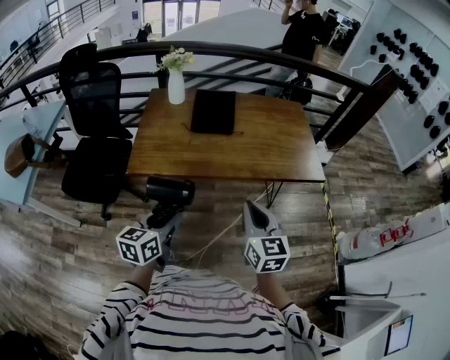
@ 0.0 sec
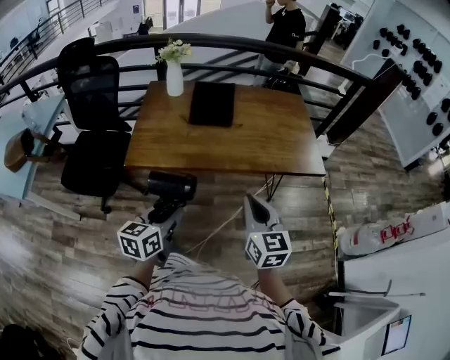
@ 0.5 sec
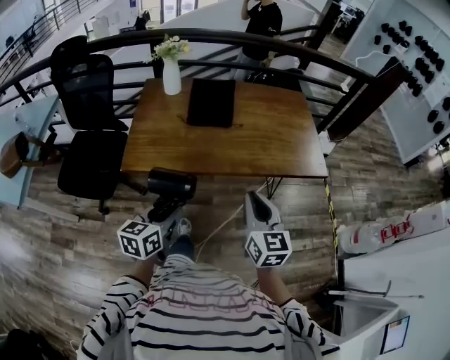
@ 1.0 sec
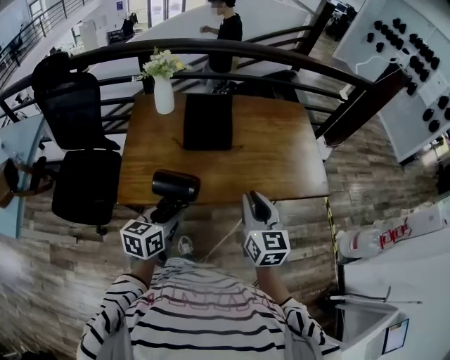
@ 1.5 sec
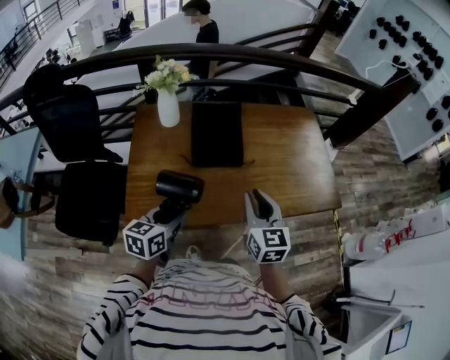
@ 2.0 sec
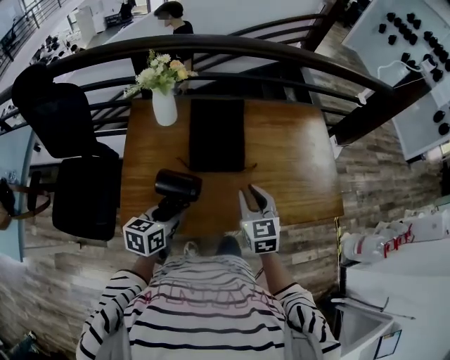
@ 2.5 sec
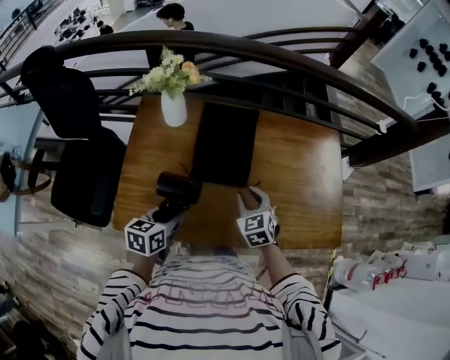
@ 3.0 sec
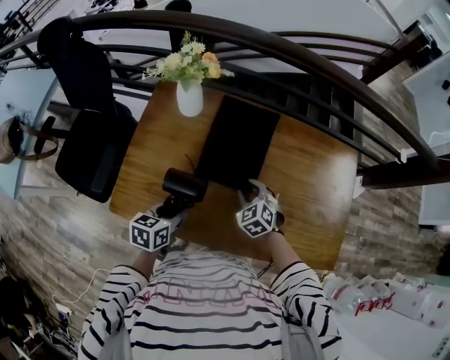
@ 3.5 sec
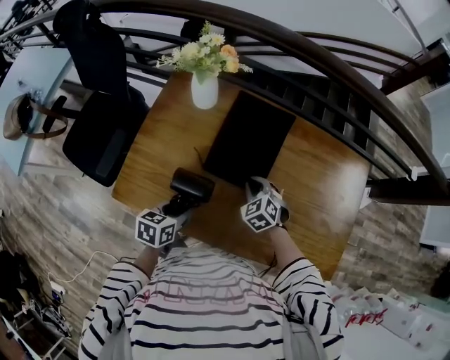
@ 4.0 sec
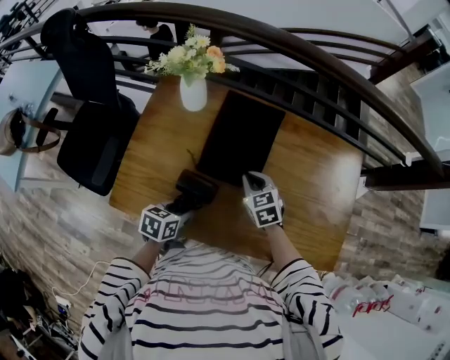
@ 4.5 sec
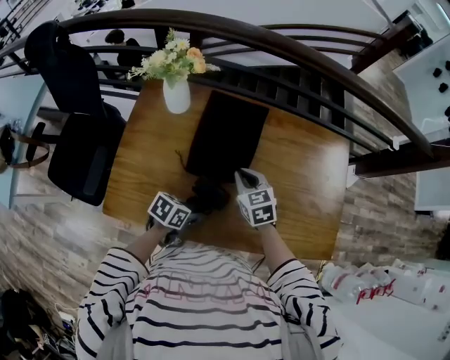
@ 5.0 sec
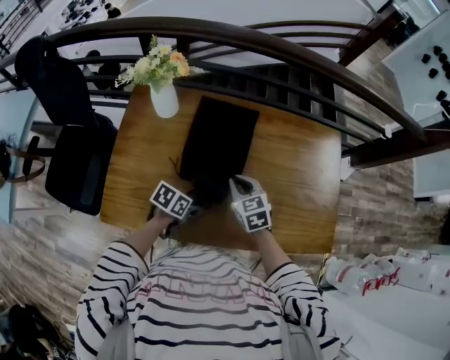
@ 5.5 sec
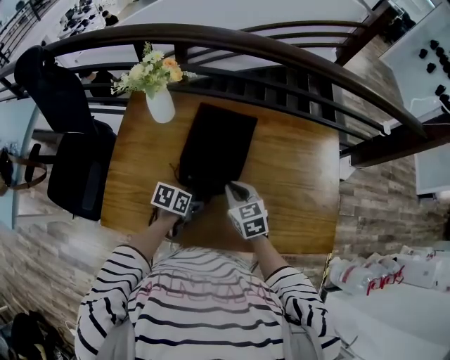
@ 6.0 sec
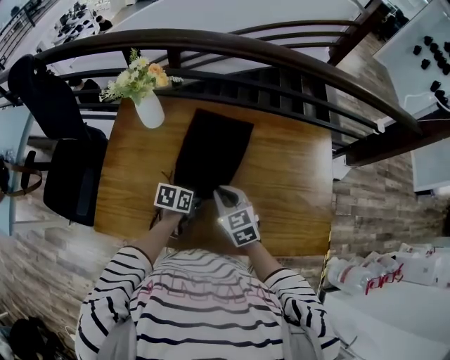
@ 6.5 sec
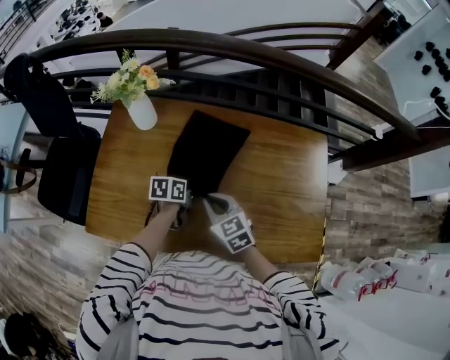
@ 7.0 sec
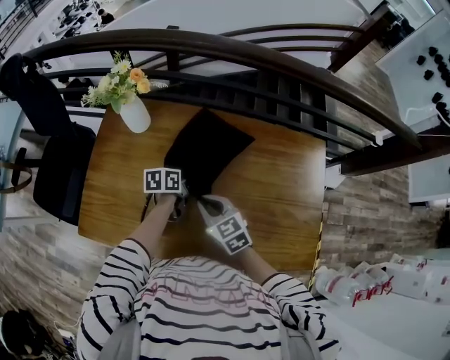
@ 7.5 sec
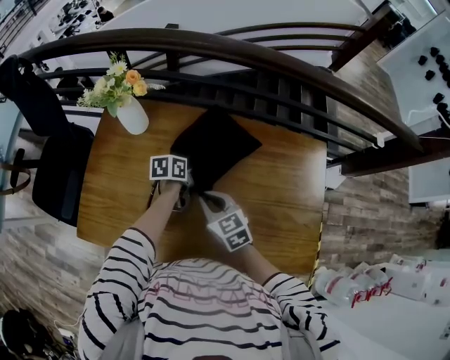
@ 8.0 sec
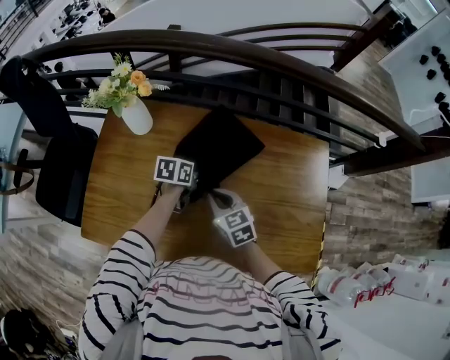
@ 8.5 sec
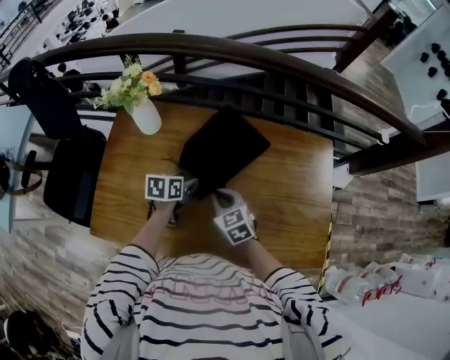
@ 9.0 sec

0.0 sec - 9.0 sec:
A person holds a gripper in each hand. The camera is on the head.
0.0 sec - 2.0 sec: Both grippers move forward, approximately 30 cm.
2.0 sec - 4.5 sec: The left gripper shifts some 20 cm downward and forward, and swivels some 20 degrees. The right gripper moves forward and downward, roughly 30 cm, and changes its angle by some 50 degrees.
4.5 sec - 7.0 sec: The right gripper is displaced backward by roughly 5 cm. The left gripper moves forward and to the right, roughly 20 cm.
7.0 sec - 9.0 sec: The right gripper ends up about 5 cm from where it was. Meanwhile the left gripper opens.

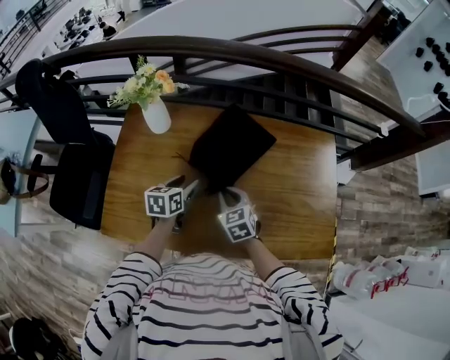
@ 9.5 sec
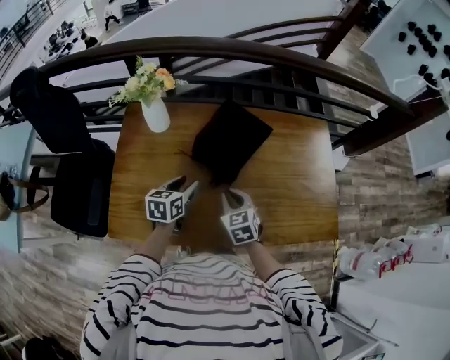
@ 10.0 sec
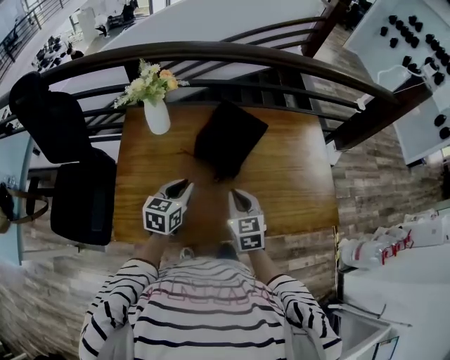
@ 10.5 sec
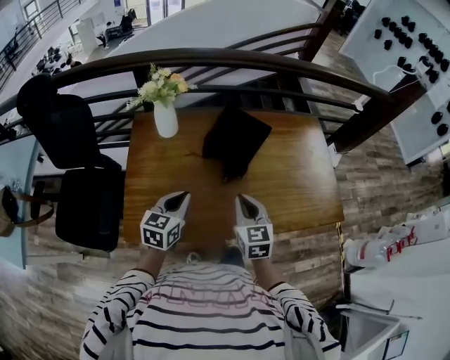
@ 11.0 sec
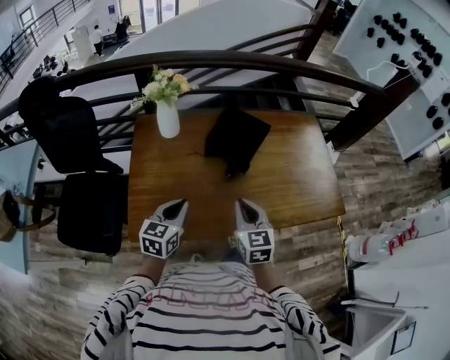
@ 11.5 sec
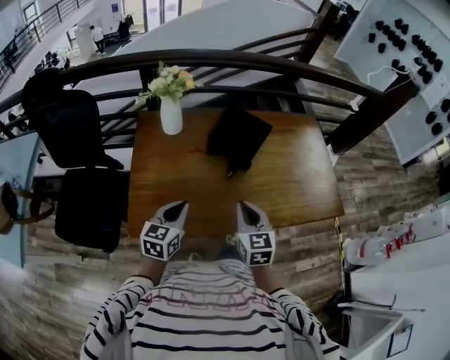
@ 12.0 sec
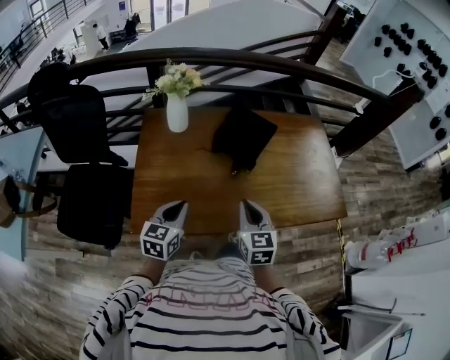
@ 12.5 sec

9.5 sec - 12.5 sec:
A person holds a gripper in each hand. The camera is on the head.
9.5 sec - 11.0 sec: The left gripper heads backward, upward and to the left, covering about 20 cm, rotates approximately 30 degrees, and closes up. Meanwhile the right gripper is displaced backward and upward by about 20 cm, and turns by about 30 degrees.
11.0 sec - 12.5 sec: Both grippers move backward, approximately 10 cm.

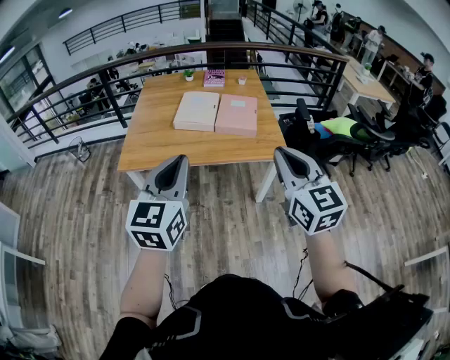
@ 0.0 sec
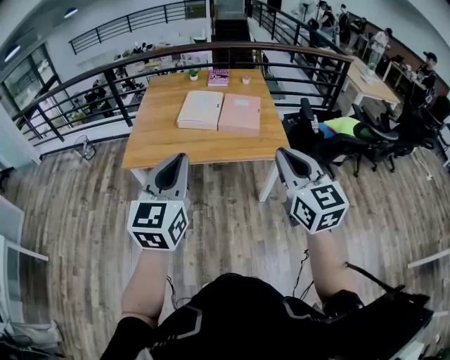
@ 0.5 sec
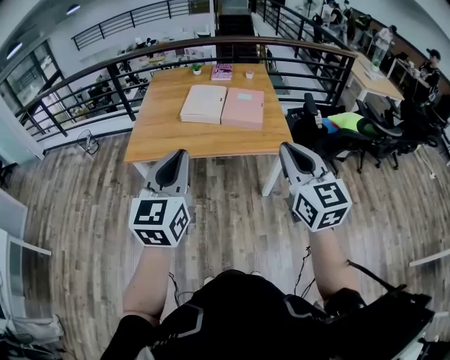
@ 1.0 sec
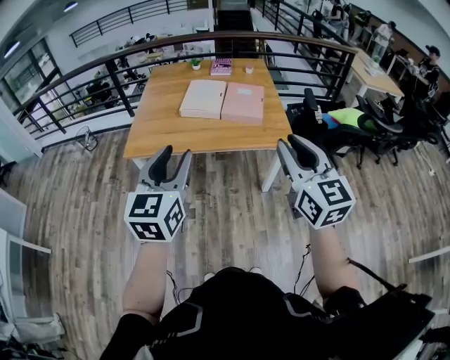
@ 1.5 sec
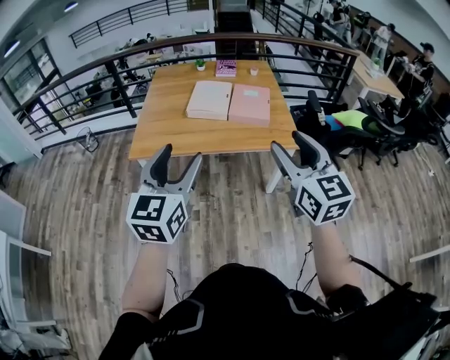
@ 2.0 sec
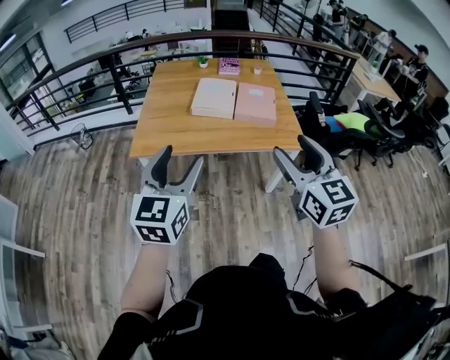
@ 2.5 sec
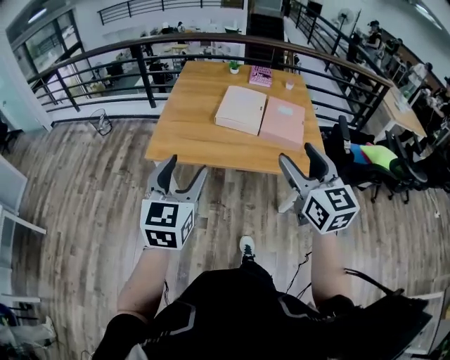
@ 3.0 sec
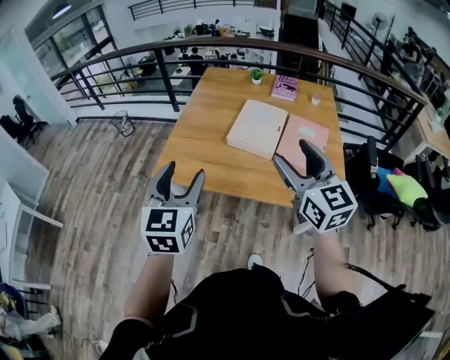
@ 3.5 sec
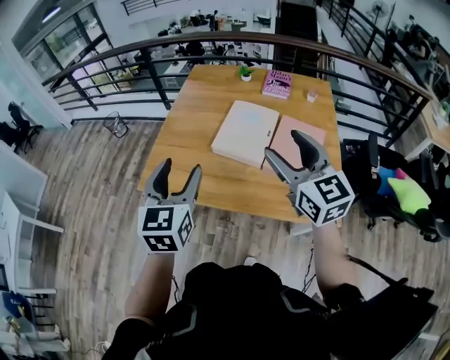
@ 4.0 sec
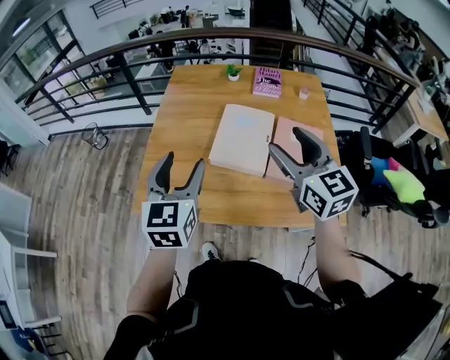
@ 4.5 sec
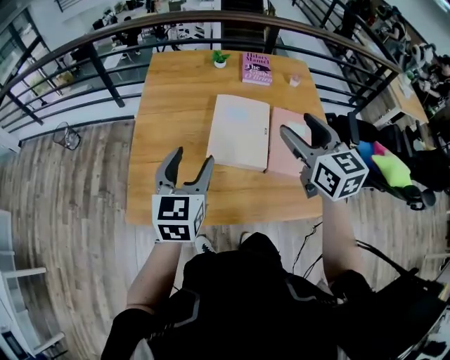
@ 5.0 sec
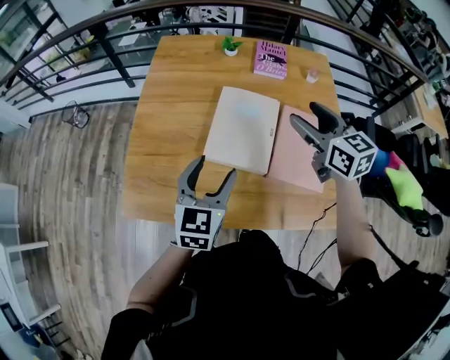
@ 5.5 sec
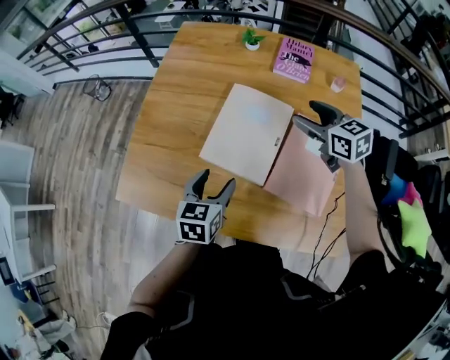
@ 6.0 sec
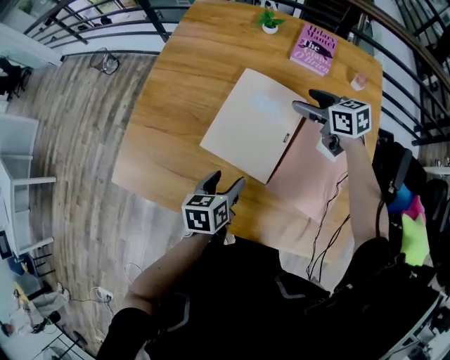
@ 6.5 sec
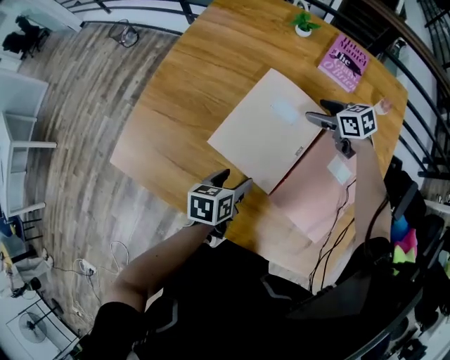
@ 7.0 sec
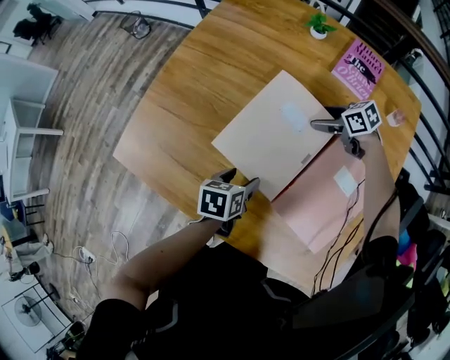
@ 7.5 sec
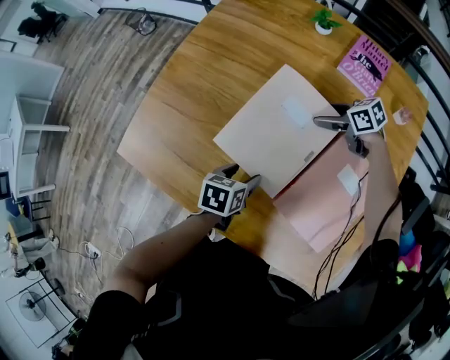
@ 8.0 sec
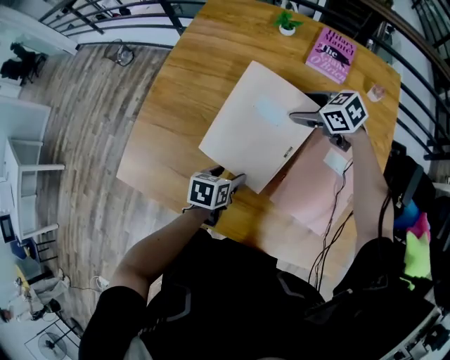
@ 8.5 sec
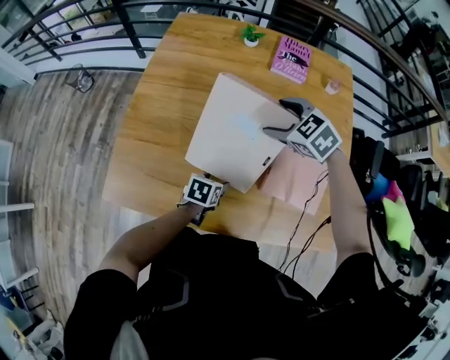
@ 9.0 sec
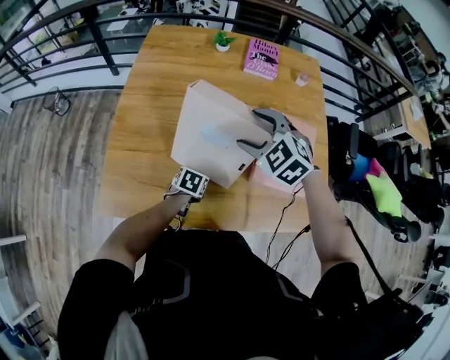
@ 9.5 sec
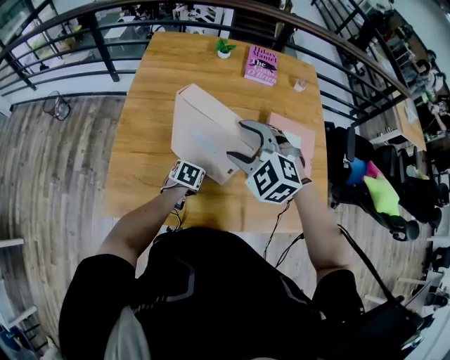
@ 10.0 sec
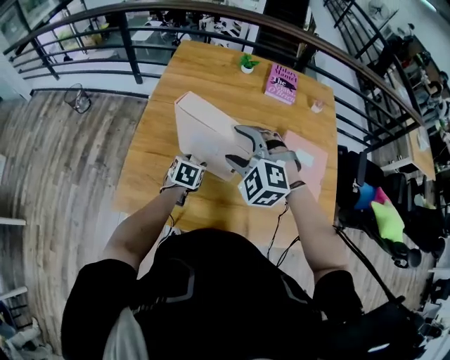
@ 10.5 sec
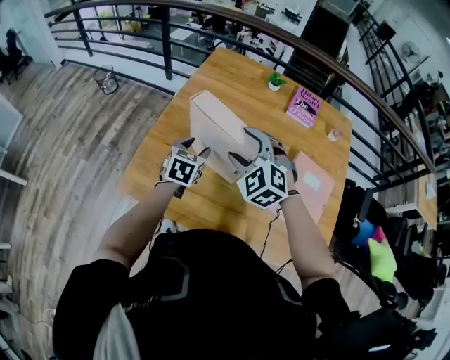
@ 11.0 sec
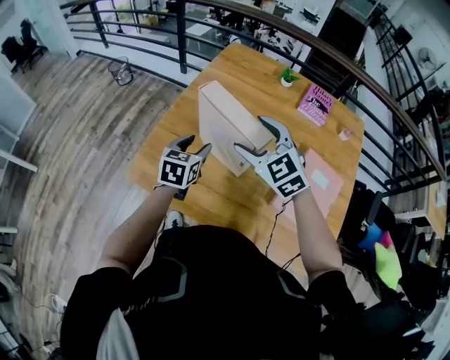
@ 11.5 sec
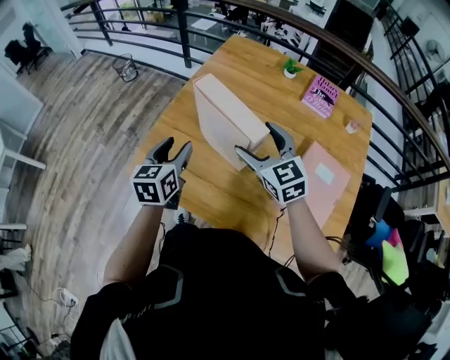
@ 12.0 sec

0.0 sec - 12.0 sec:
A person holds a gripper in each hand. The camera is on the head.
0.0 sec - 2.0 sec: The left gripper opens up, while the right gripper opens its fingers.
2.0 sec - 4.0 sec: Both grippers travel together forward, about 35 cm. The right gripper rotates approximately 20 degrees. Meanwhile the left gripper swivels approximately 30 degrees.
4.0 sec - 6.0 sec: The left gripper shifts about 30 cm downward and forward, and changes its angle by roughly 30 degrees; the right gripper moves forward and downward, about 40 cm, and rotates approximately 30 degrees.
6.0 sec - 8.0 sec: Both grippers move downward, approximately 20 cm. The right gripper changes its angle by some 40 degrees. The left gripper changes its angle by about 30 degrees.
8.0 sec - 10.0 sec: The right gripper shifts by about 35 cm, and rotates approximately 70 degrees. Meanwhile the left gripper changes place by about 10 cm, and turns by approximately 40 degrees.
10.0 sec - 12.0 sec: The left gripper travels upward by some 25 cm, and angles its fingers upward, by some 40 degrees. The right gripper rotates some 40 degrees.

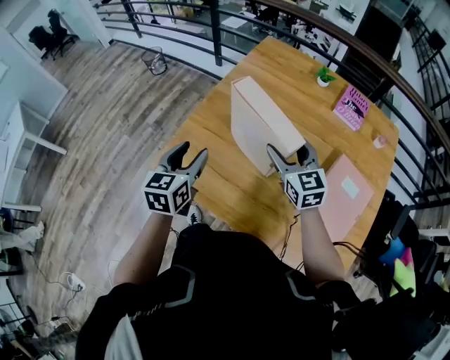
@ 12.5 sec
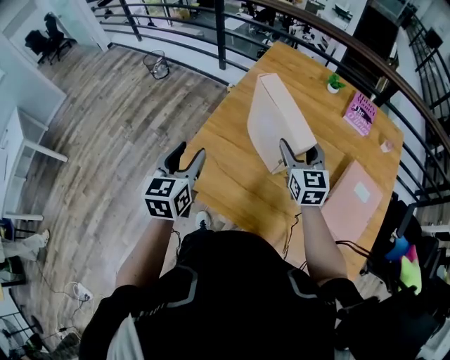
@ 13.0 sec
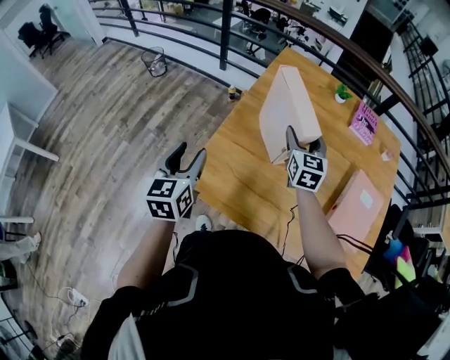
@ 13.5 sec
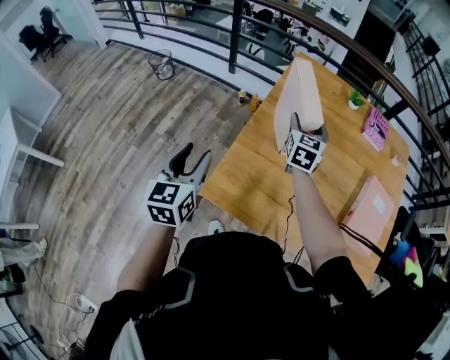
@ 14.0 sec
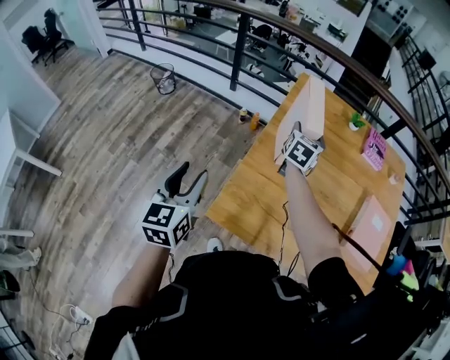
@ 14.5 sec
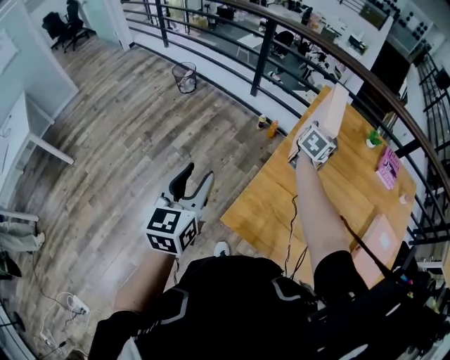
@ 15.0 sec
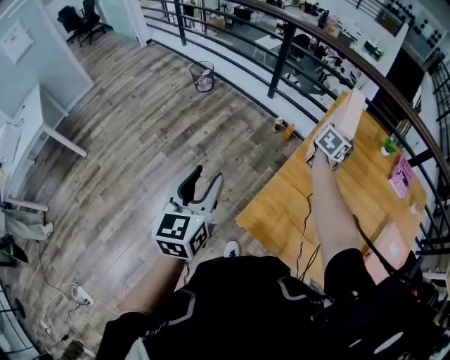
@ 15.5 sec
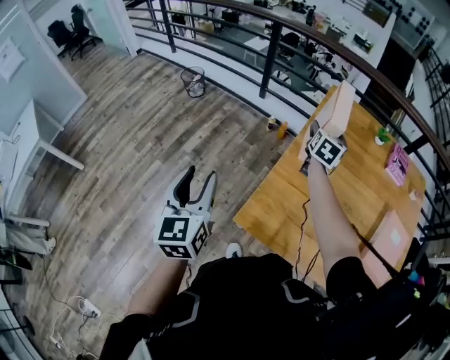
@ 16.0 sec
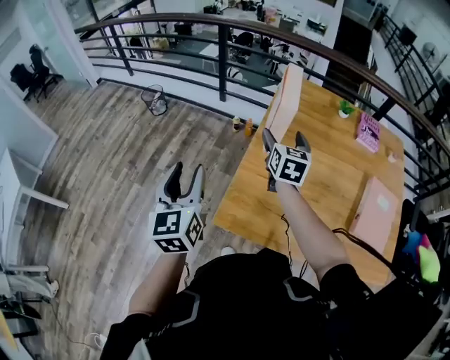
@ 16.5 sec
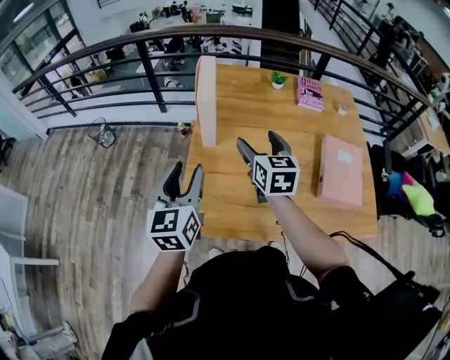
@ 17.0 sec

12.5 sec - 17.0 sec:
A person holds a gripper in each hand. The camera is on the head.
12.5 sec - 14.5 sec: The left gripper ends up roughly 30 cm from where it was, while the right gripper changes place by approximately 25 cm, and swivels roughly 50 degrees.
14.5 sec - 17.0 sec: The right gripper is displaced backward, to the right and upward by approximately 20 cm; the left gripper is displaced to the right by some 15 cm.
